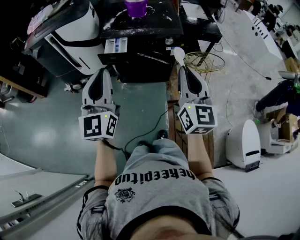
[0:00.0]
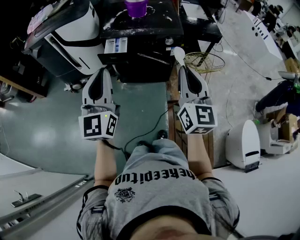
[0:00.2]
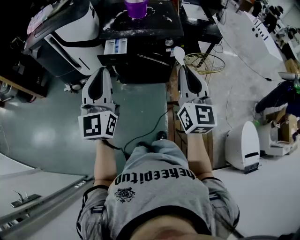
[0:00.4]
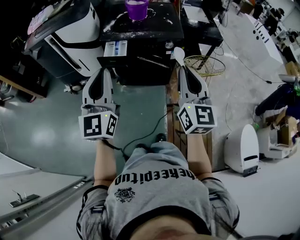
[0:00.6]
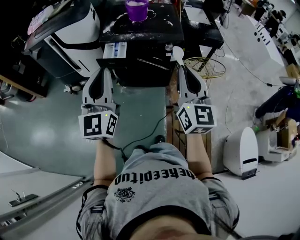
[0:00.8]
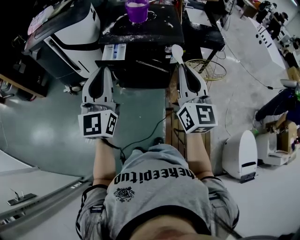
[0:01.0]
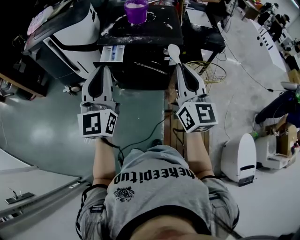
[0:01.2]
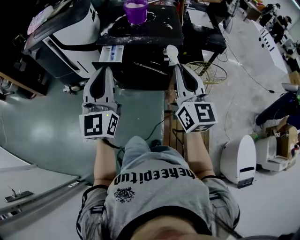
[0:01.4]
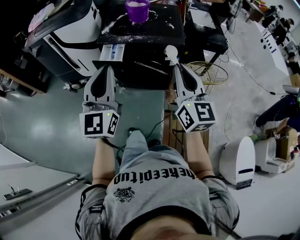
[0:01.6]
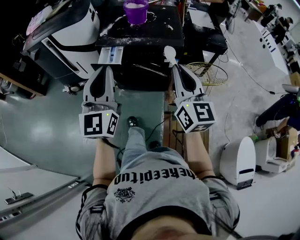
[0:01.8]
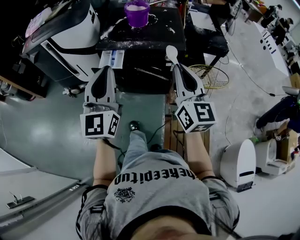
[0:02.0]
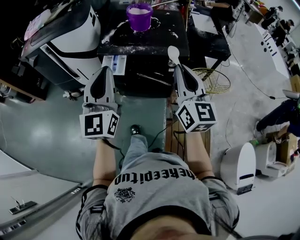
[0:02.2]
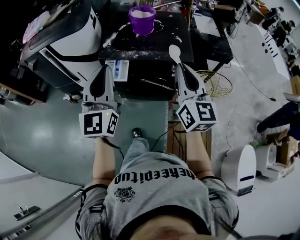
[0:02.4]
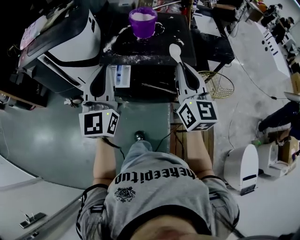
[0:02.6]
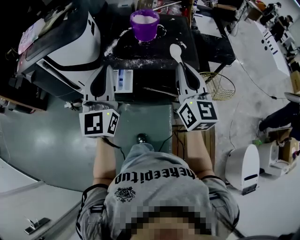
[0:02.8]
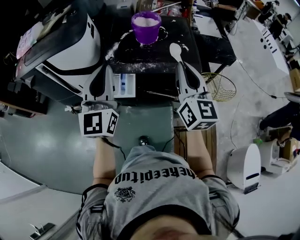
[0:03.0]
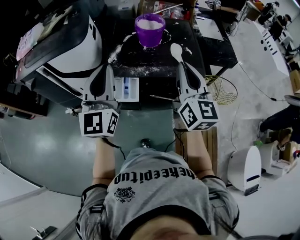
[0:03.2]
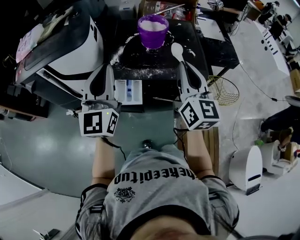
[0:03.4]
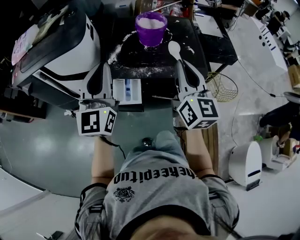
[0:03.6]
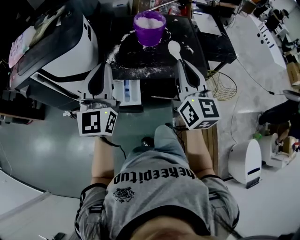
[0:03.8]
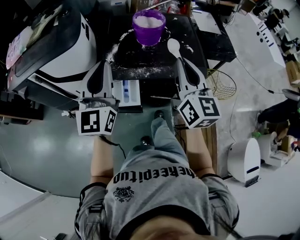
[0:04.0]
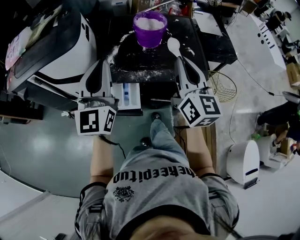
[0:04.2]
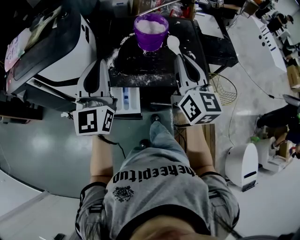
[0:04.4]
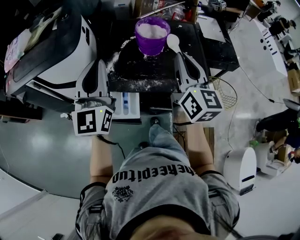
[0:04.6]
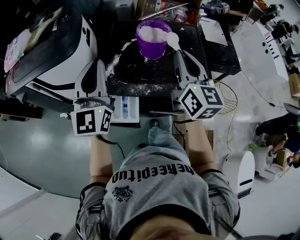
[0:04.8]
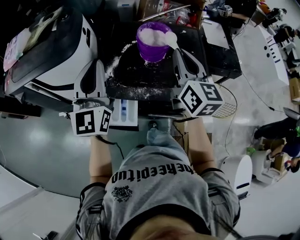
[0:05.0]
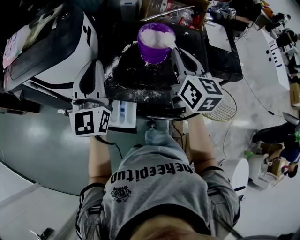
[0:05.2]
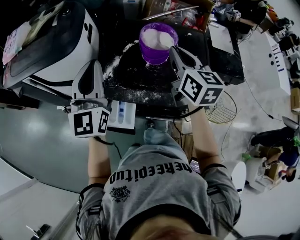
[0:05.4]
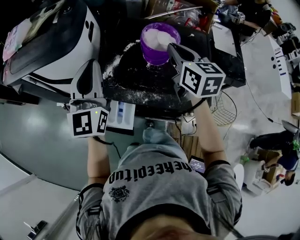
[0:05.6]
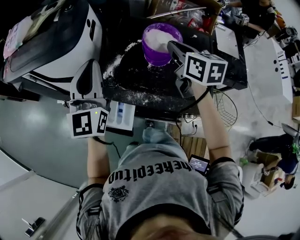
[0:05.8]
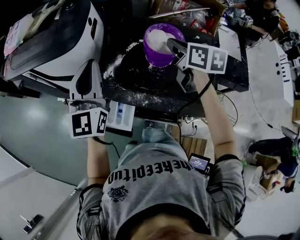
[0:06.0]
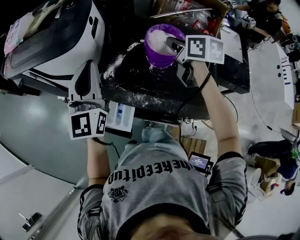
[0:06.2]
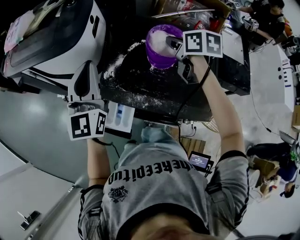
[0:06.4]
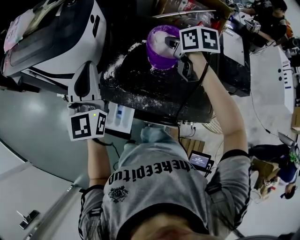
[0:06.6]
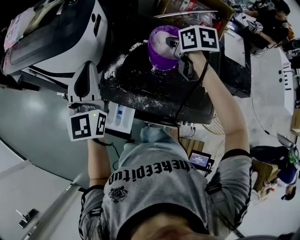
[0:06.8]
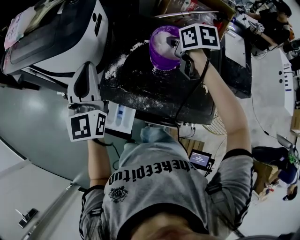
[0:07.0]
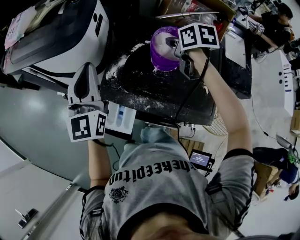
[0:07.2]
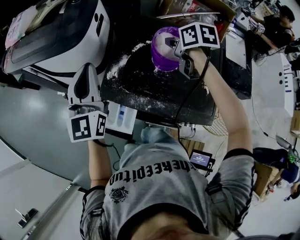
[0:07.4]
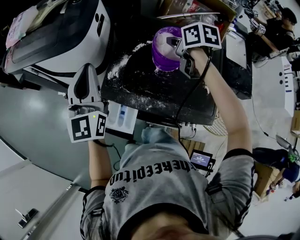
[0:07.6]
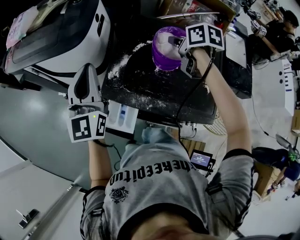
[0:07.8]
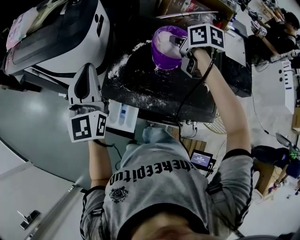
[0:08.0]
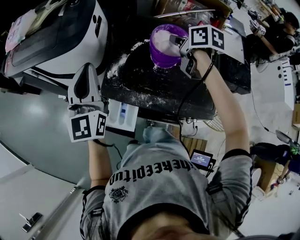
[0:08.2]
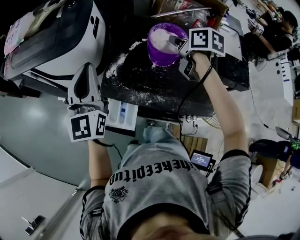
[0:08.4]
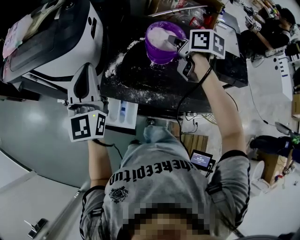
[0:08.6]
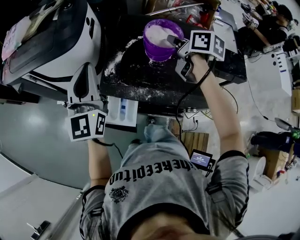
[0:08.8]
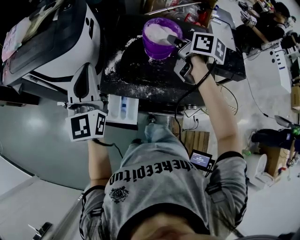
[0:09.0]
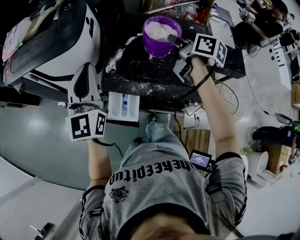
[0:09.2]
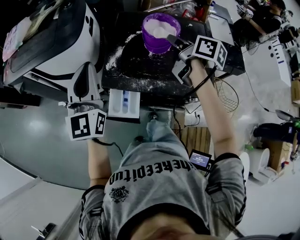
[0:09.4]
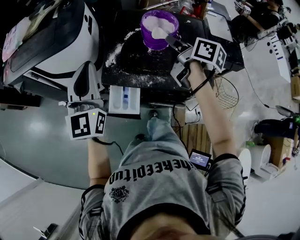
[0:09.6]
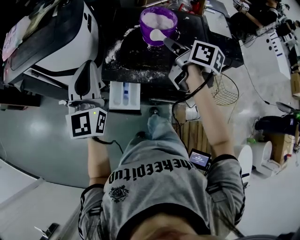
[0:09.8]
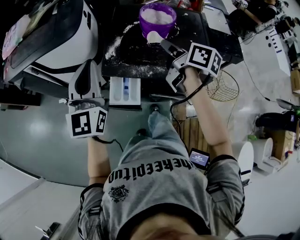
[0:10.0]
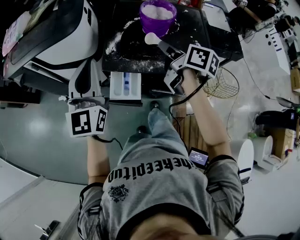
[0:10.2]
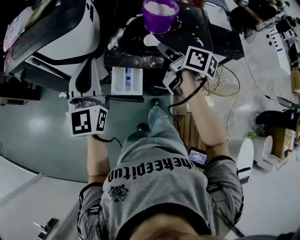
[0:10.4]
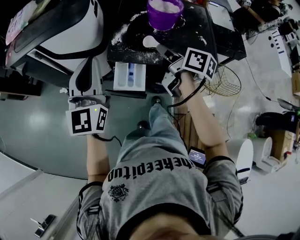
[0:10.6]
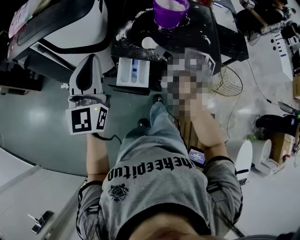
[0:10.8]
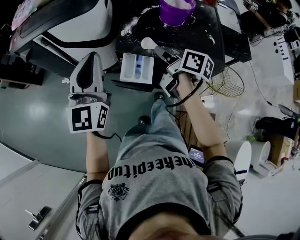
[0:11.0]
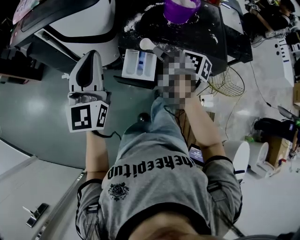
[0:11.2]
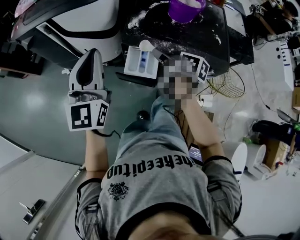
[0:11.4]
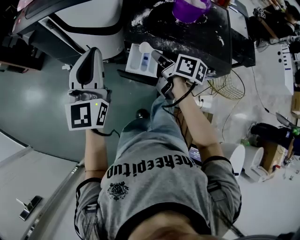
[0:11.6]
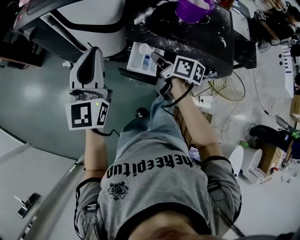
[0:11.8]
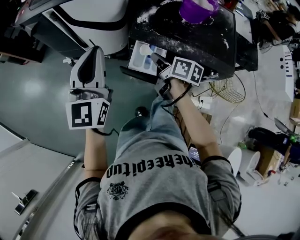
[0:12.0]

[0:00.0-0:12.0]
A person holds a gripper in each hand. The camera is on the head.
0:00.0 to 0:01.6: The right gripper goes about 10 cm forward. The left gripper goes about 10 cm forward and to the right.
0:01.6 to 0:03.0: The two grippers go some 25 cm forward.
0:03.0 to 0:04.4: The two grippers go some 15 cm forward.
0:04.4 to 0:06.0: The right gripper goes approximately 25 cm forward, and swivels roughly 40 degrees. The left gripper goes approximately 10 cm forward.
0:06.0 to 0:07.6: The right gripper goes approximately 10 cm forward and downward.
0:07.6 to 0:09.0: The right gripper goes about 10 cm backward, and swivels about 30 degrees.
0:09.0 to 0:10.4: The right gripper moves backward and to the left, approximately 20 cm. Meanwhile the left gripper travels backward by roughly 10 cm.
0:10.4 to 0:12.0: The right gripper moves to the left and downward, roughly 20 cm. Meanwhile the left gripper moves to the left, roughly 10 cm.

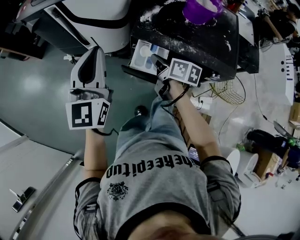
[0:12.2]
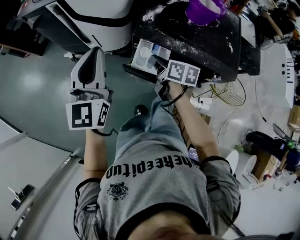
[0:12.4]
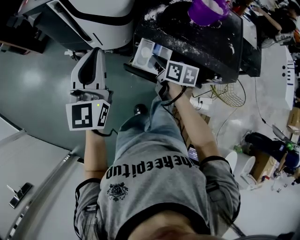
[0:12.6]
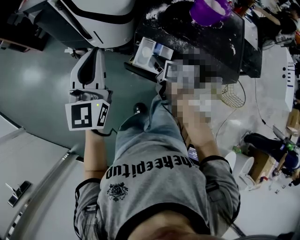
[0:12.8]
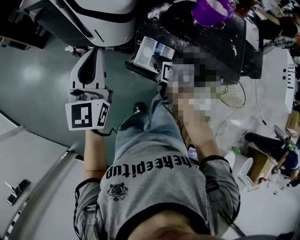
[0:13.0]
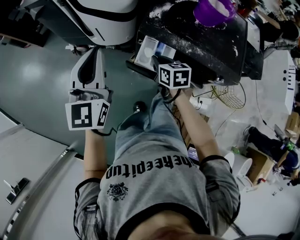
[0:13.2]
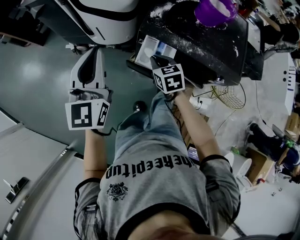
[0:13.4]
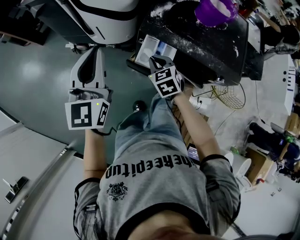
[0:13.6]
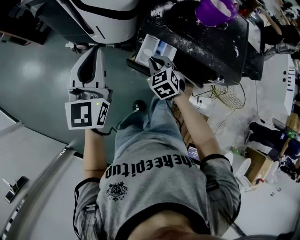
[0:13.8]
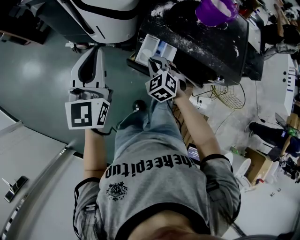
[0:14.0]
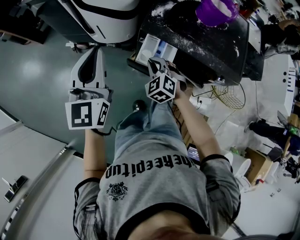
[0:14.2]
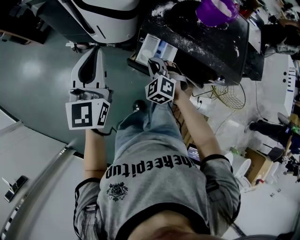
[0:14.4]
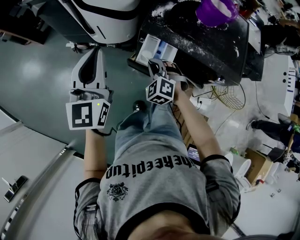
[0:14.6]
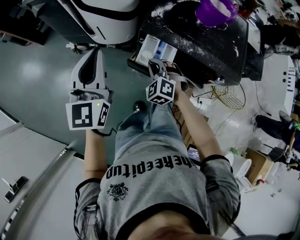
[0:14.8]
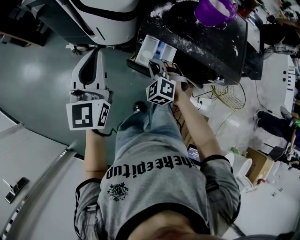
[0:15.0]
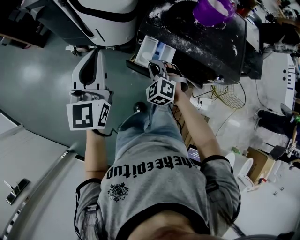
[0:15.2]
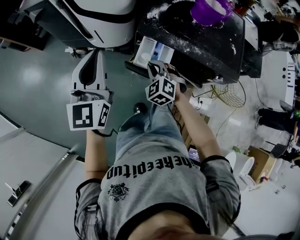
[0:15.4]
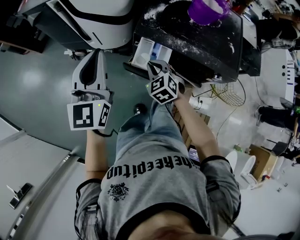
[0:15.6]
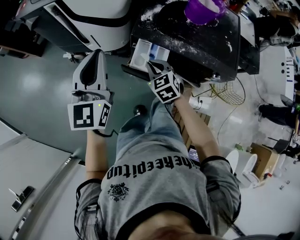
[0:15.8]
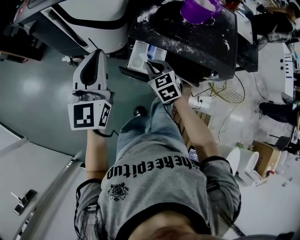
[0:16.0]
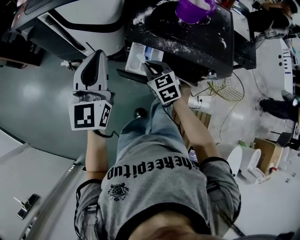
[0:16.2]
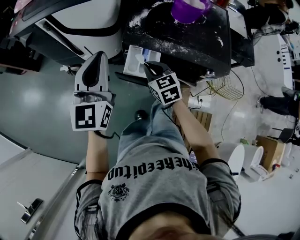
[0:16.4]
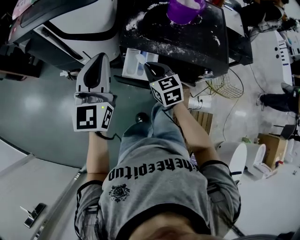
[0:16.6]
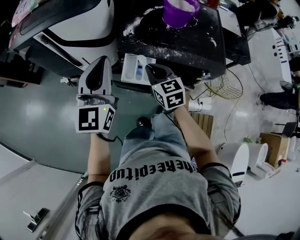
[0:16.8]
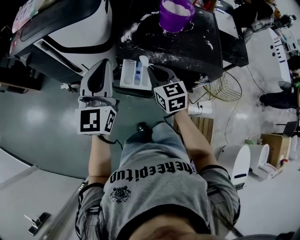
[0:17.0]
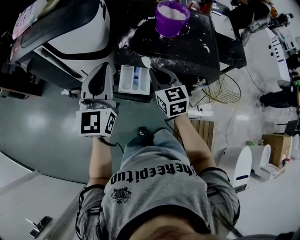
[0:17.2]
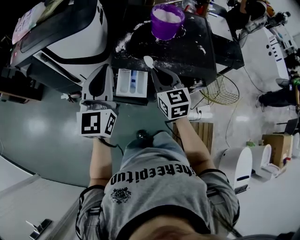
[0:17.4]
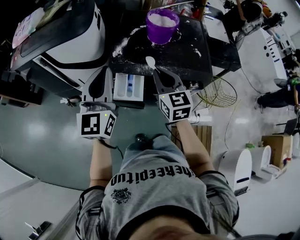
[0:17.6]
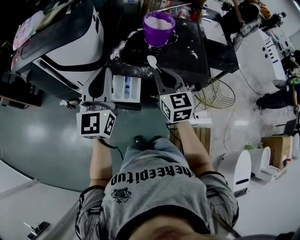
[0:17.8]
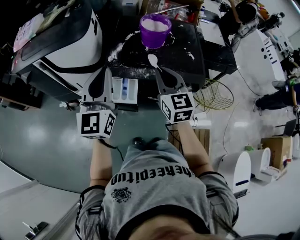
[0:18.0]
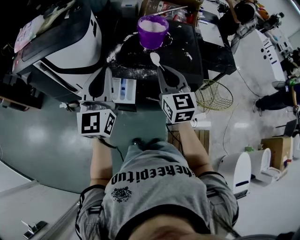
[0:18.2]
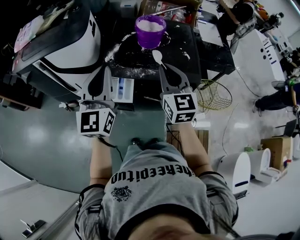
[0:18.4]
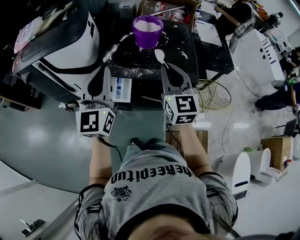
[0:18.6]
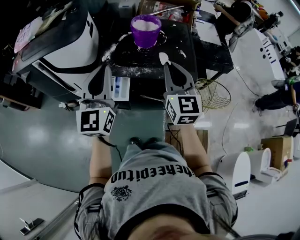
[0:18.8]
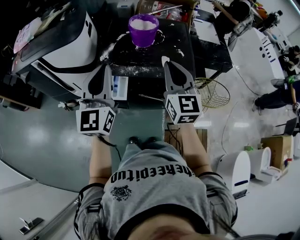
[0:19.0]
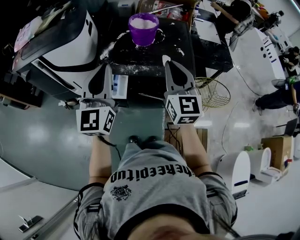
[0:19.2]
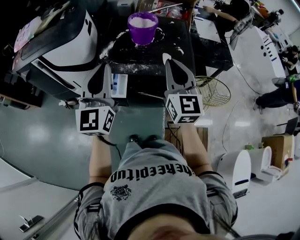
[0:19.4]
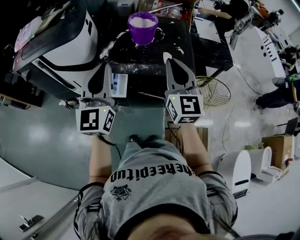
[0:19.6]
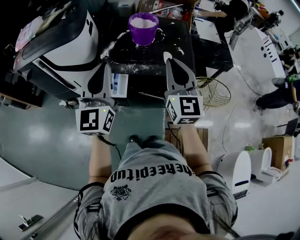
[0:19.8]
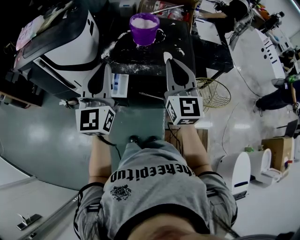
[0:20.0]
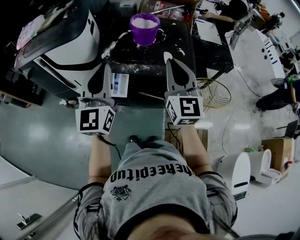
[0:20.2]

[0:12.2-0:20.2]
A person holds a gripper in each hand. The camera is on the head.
0:12.2 to 0:13.8: The right gripper is displaced downward by some 5 cm, and twists approximately 70 degrees counterclockwise, seen from behind.
0:15.4 to 0:17.0: The left gripper goes roughly 10 cm to the right. The right gripper shifts approximately 15 cm upward and to the right, and rotates around the line of its fingers by some 50 degrees, clockwise from behind.
0:17.0 to 0:18.6: The left gripper goes roughly 15 cm to the right and upward, while the right gripper shifts about 25 cm upward and to the right, and swivels roughly 30 degrees.
0:18.6 to 0:20.2: The right gripper ends up some 5 cm from where it was.

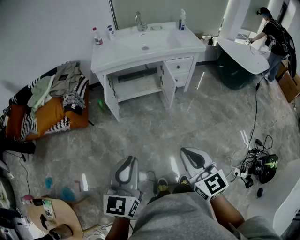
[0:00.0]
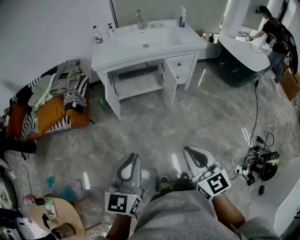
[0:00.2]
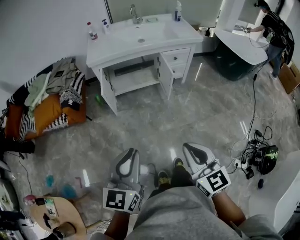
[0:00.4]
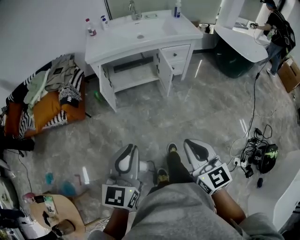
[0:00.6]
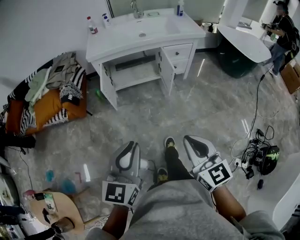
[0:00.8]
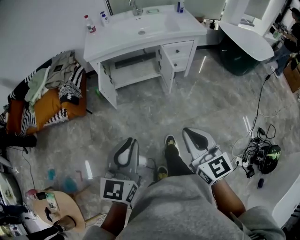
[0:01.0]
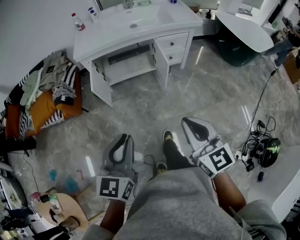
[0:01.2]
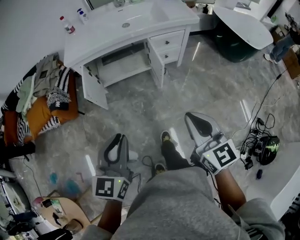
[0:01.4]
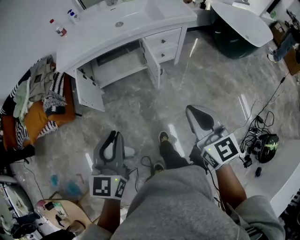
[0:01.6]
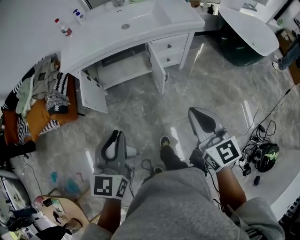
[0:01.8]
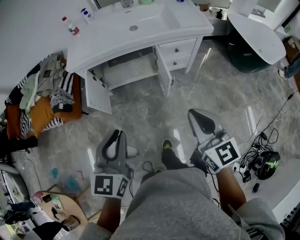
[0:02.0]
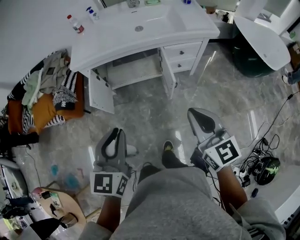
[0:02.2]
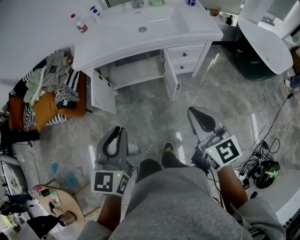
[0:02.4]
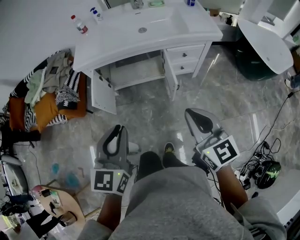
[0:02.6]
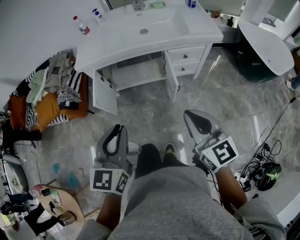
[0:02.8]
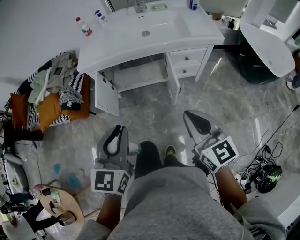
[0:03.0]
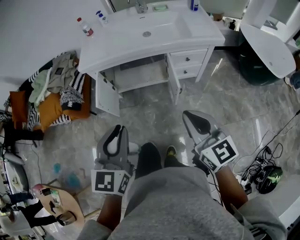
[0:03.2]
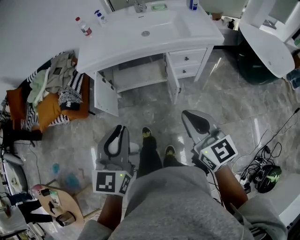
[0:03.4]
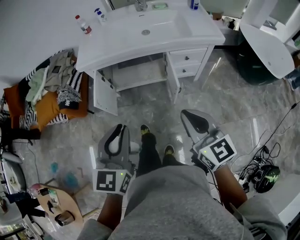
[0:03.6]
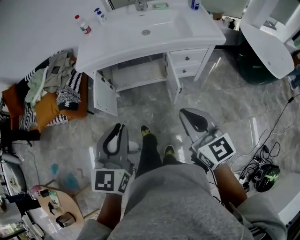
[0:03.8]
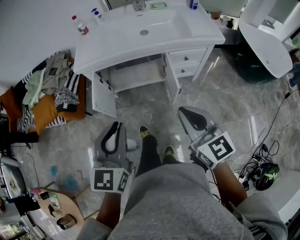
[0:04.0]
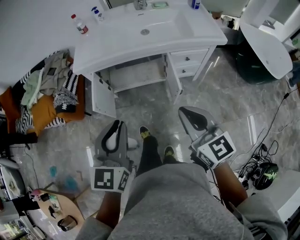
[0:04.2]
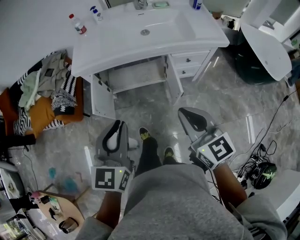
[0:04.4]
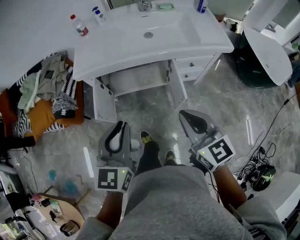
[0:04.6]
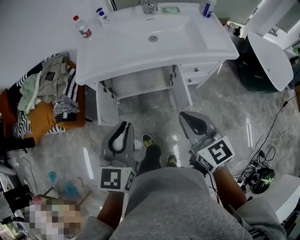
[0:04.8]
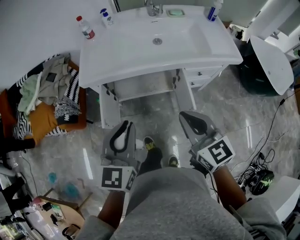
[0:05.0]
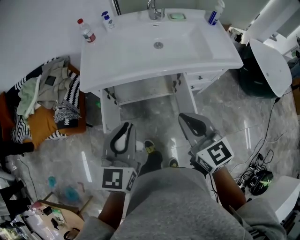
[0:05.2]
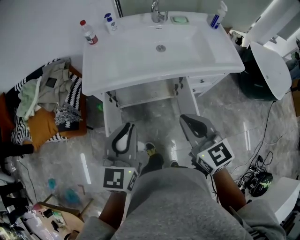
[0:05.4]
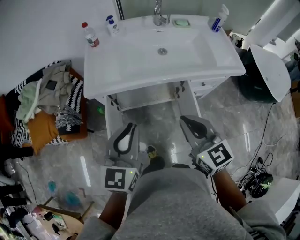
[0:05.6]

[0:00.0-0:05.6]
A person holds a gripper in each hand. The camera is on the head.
0:00.0 to 0:01.4: The two grippers go some 20 cm forward and to the right.
0:01.4 to 0:02.8: Both grippers move forward, roughly 15 cm.
0:02.8 to 0:04.2: Both grippers move forward, roughly 5 cm.
0:04.2 to 0:05.6: Both grippers travel together forward and to the left, roughly 20 cm.
